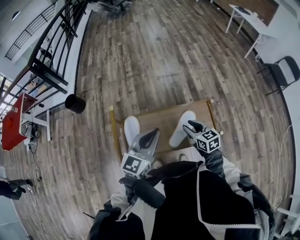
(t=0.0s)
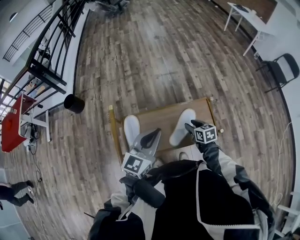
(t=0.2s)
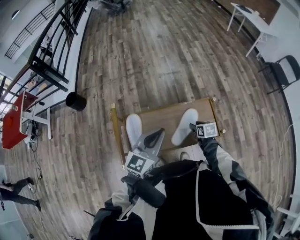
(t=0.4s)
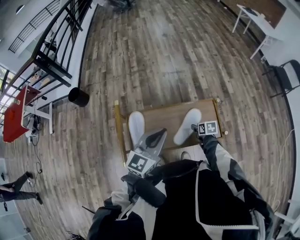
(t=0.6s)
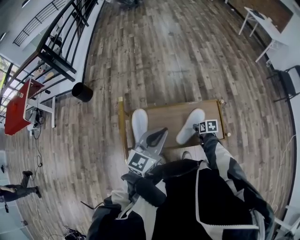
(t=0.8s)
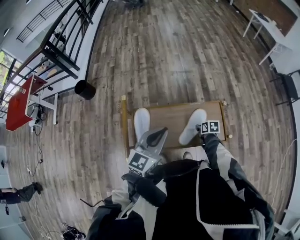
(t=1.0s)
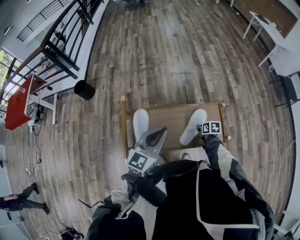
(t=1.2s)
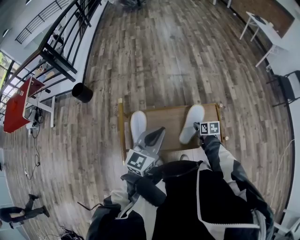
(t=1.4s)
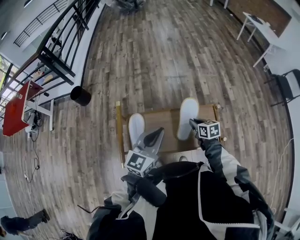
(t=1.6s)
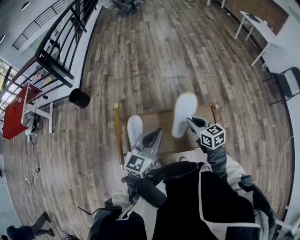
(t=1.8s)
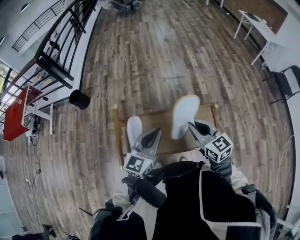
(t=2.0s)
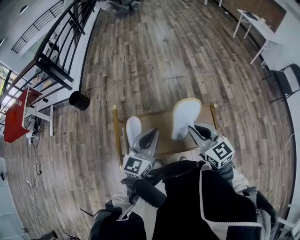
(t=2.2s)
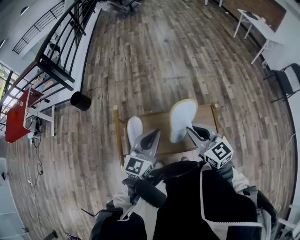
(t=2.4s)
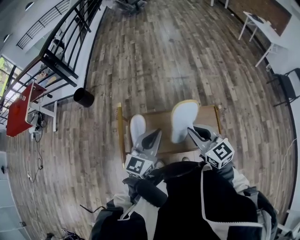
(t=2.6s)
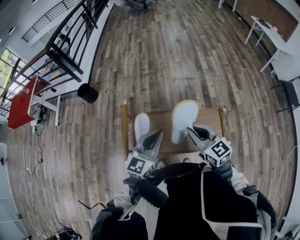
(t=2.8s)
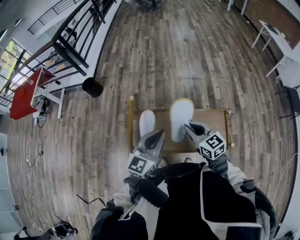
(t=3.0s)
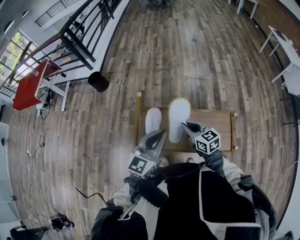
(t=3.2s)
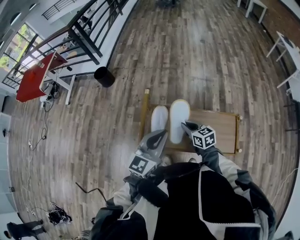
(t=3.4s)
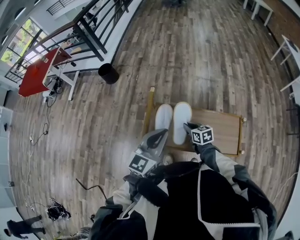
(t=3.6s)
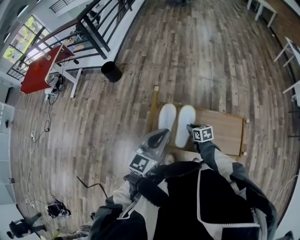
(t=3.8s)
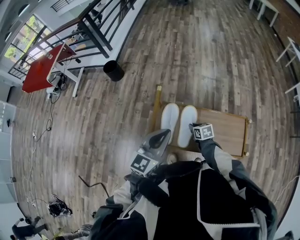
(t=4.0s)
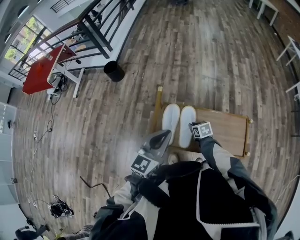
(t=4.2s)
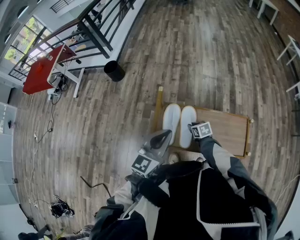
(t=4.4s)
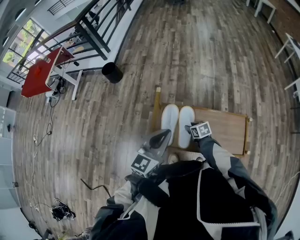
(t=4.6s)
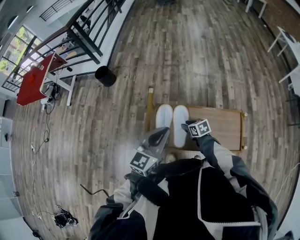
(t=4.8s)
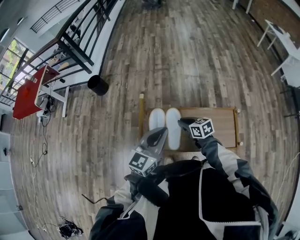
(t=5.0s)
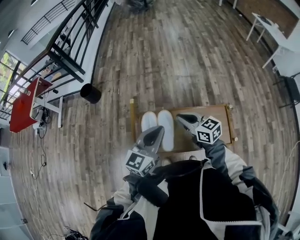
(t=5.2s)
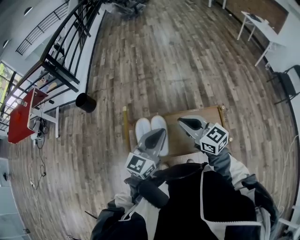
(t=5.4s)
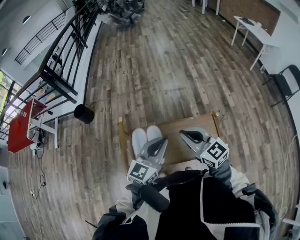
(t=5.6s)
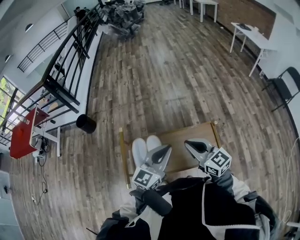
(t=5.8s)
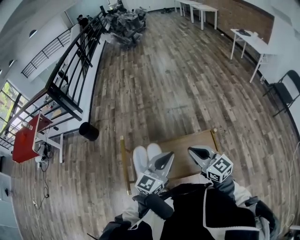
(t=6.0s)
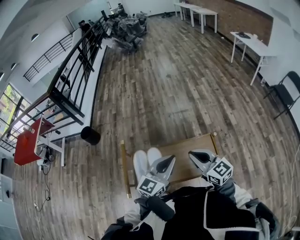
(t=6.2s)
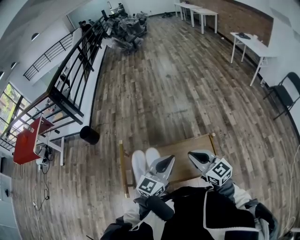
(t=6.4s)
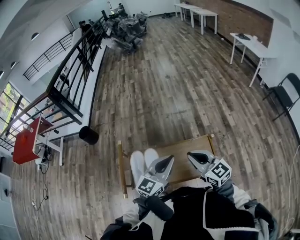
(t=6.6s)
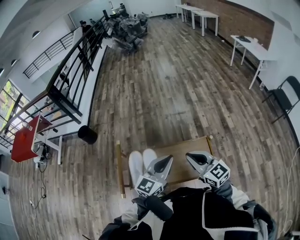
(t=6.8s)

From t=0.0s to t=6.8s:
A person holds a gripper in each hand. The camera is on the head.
From t=0.0s to t=1.4s: The right gripper shifts roughly 15 cm downward, swivels about 30 degrees, and closes its fingers.
From t=1.4s to t=2.8s: The right gripper is displaced upward by approximately 25 cm, and tilts its fingers about 40 degrees upward.
From t=2.8s to t=4.0s: The left gripper goes approximately 10 cm to the left; the right gripper moves downward, about 30 cm, and tips its fingers downward by roughly 30 degrees.
From t=4.0s to t=5.4s: The left gripper shifts roughly 10 cm to the right; the right gripper moves upward, some 30 cm, points its fingers roughly 40 degrees further upward, and opens, then closes again.
From t=5.4s to t=6.8s: The two grippers go about 10 cm to the right.

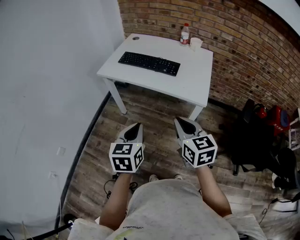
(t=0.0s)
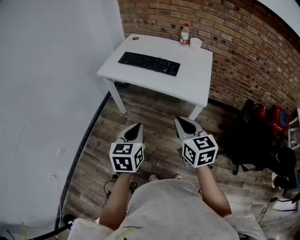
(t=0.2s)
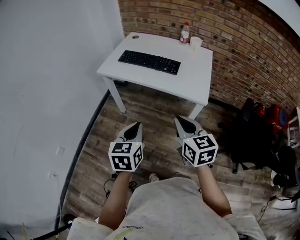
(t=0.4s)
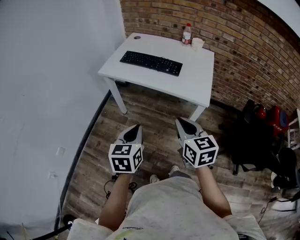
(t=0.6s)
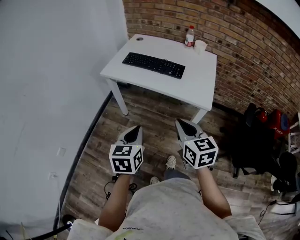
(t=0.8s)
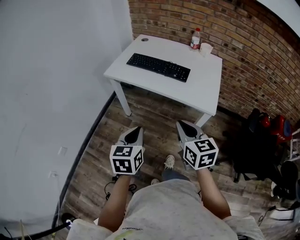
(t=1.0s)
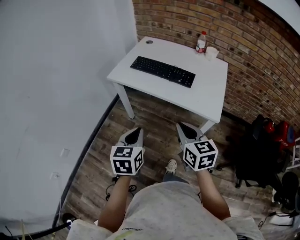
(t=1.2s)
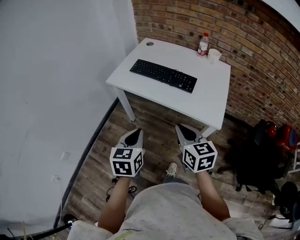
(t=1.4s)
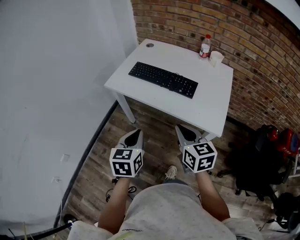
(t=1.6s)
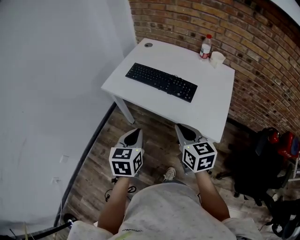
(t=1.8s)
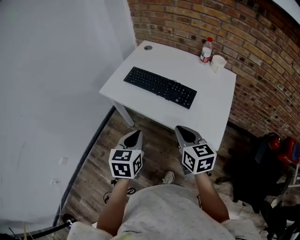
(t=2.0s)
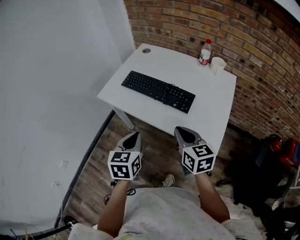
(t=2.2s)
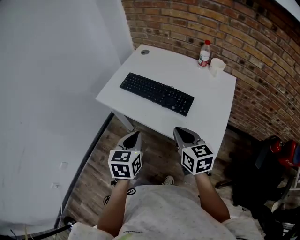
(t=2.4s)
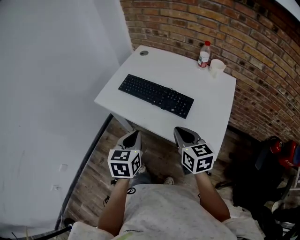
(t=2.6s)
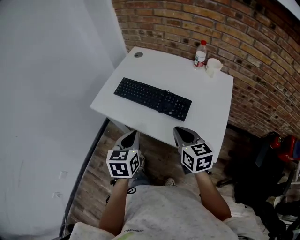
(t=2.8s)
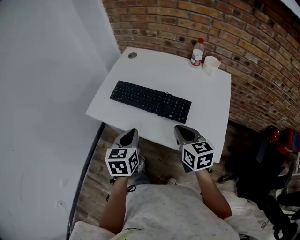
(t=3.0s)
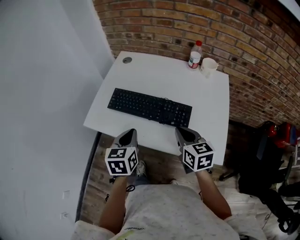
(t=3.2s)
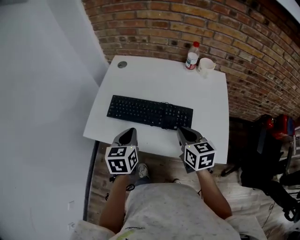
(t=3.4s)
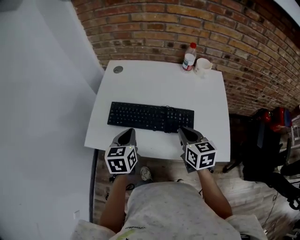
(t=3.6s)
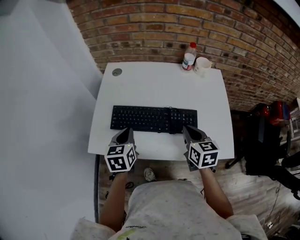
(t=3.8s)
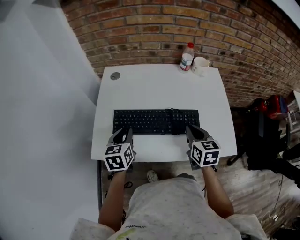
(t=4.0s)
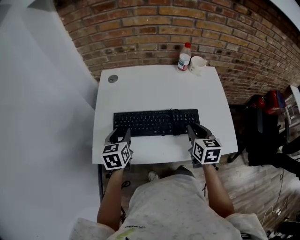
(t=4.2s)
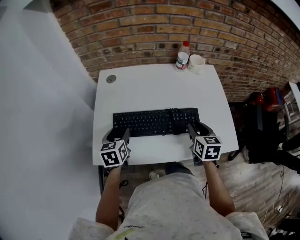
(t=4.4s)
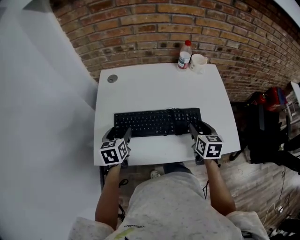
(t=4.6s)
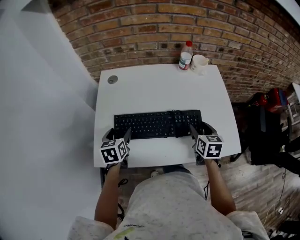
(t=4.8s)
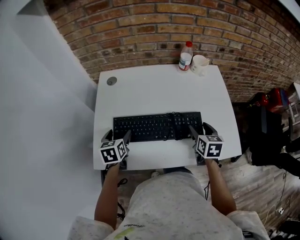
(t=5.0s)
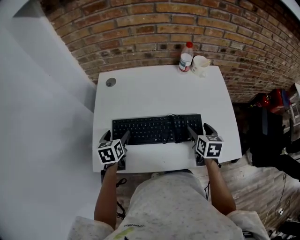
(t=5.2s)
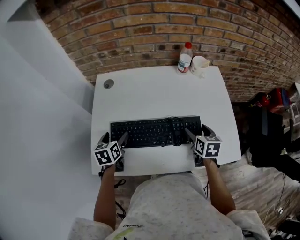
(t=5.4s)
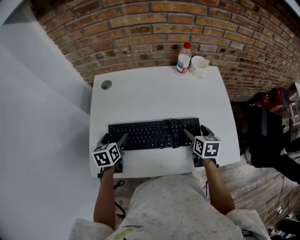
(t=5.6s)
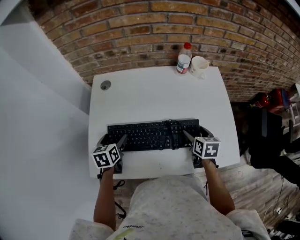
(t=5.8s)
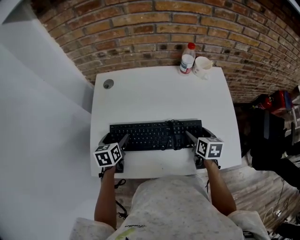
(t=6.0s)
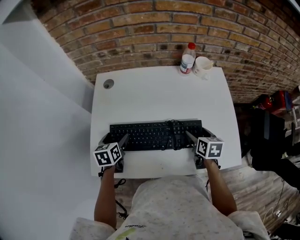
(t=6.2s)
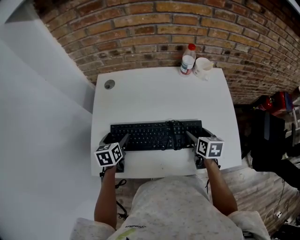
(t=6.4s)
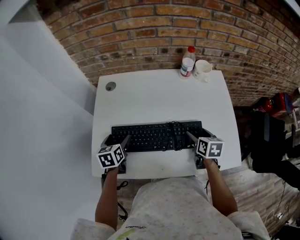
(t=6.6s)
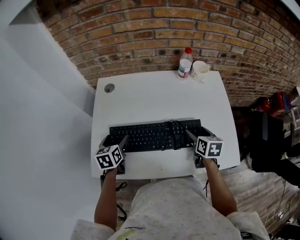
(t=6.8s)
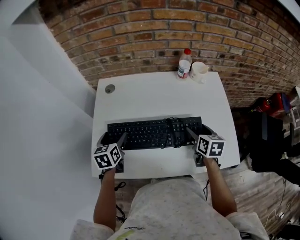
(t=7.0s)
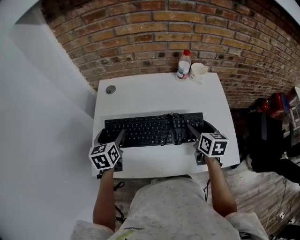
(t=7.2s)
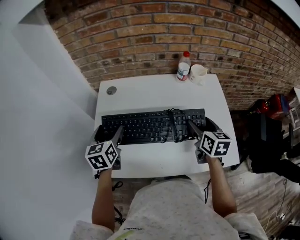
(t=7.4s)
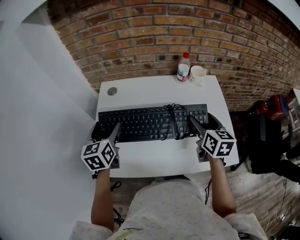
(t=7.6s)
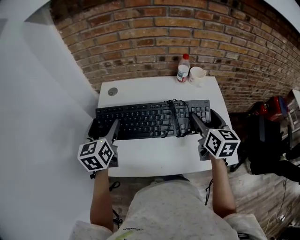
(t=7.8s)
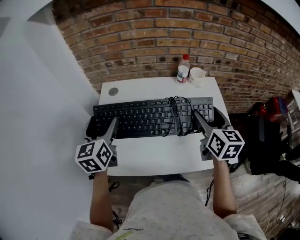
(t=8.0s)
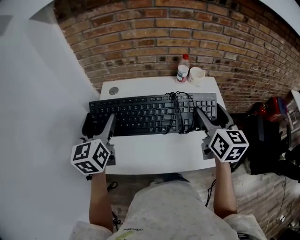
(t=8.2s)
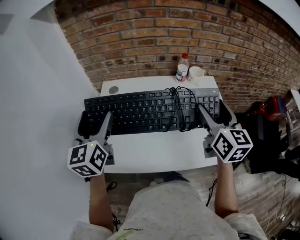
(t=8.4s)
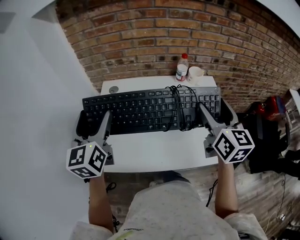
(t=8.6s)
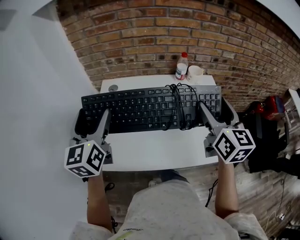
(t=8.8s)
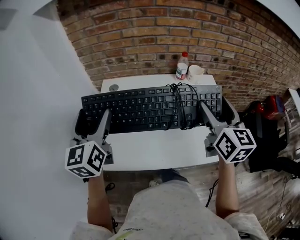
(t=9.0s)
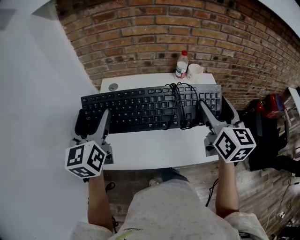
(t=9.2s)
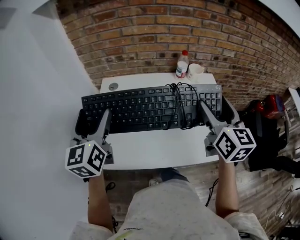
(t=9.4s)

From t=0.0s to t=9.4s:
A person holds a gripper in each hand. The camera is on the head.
From t=0.0s to t=1.6s: Both grippers travel together forward, approximately 15 cm.
From t=1.6s to t=3.2s: The grippers both shift forward by some 25 cm.
From t=3.2s to t=4.8s: The right gripper shifts some 10 cm forward and downward, changes its angle by roughly 40 degrees, and opens its fingers. The left gripper moves forward, to the left and downward, roughly 25 cm, and opens up.
From t=4.8s to t=6.2s: The right gripper is displaced downward and forward by about 5 cm, and opens its fingers, while the left gripper shifts by about 5 cm.
From t=6.2s to t=7.8s: The two grippers go approximately 20 cm upward. The left gripper turns by approximately 30 degrees, while the right gripper swivels roughly 30 degrees.
From t=7.8s to t=9.4s: Both grippers move upward and backward, roughly 10 cm.

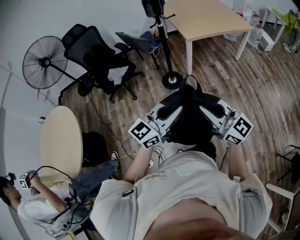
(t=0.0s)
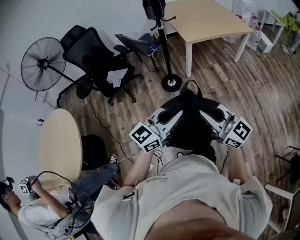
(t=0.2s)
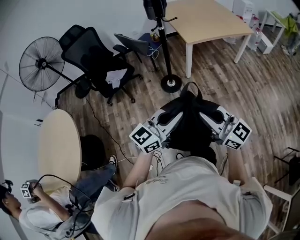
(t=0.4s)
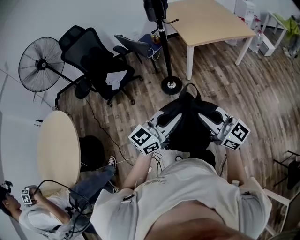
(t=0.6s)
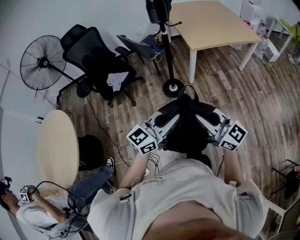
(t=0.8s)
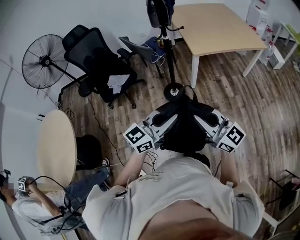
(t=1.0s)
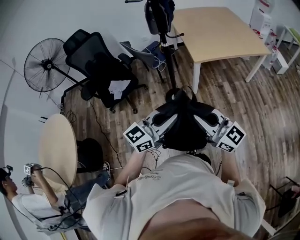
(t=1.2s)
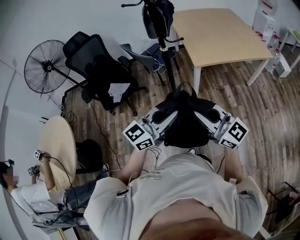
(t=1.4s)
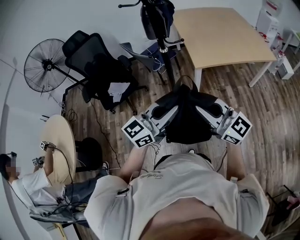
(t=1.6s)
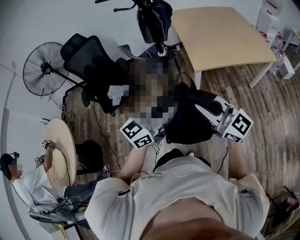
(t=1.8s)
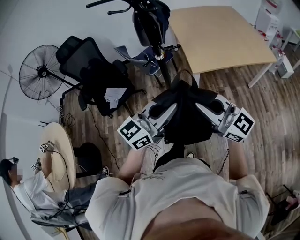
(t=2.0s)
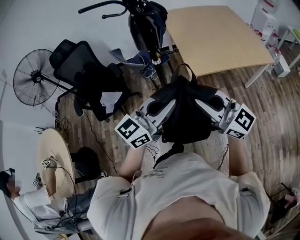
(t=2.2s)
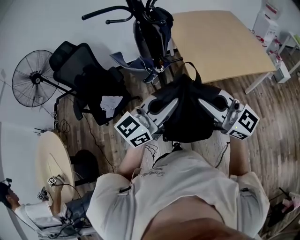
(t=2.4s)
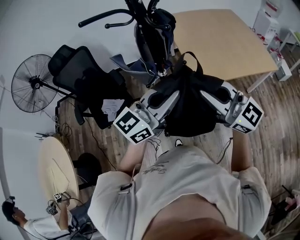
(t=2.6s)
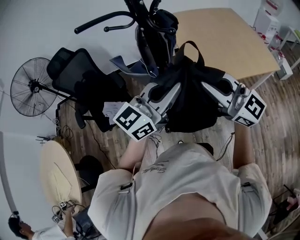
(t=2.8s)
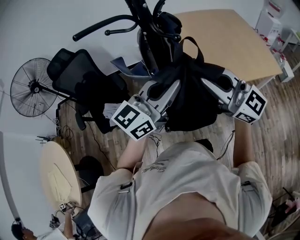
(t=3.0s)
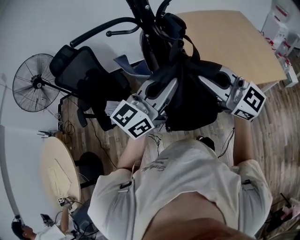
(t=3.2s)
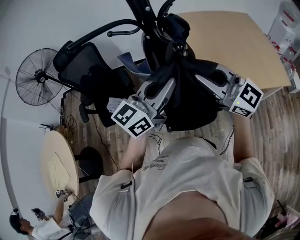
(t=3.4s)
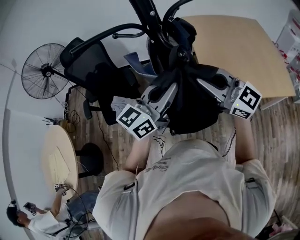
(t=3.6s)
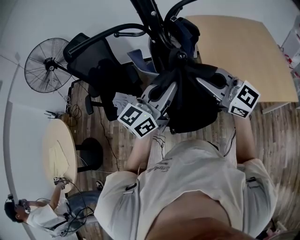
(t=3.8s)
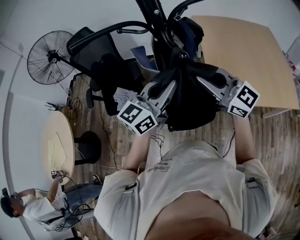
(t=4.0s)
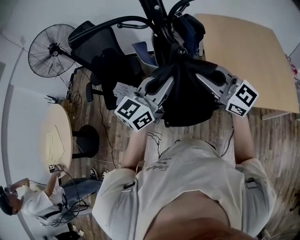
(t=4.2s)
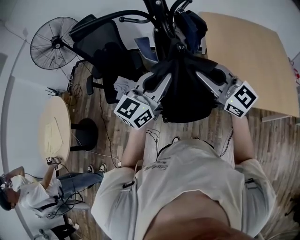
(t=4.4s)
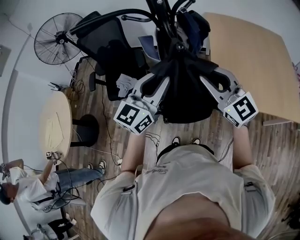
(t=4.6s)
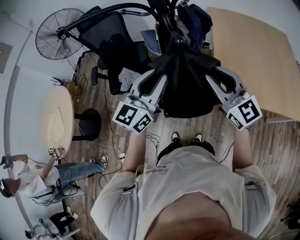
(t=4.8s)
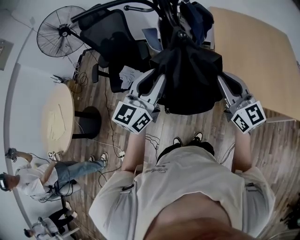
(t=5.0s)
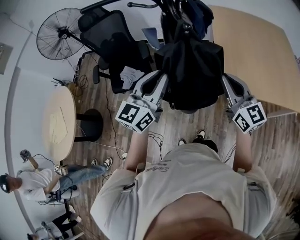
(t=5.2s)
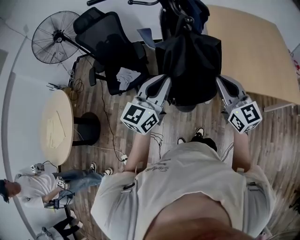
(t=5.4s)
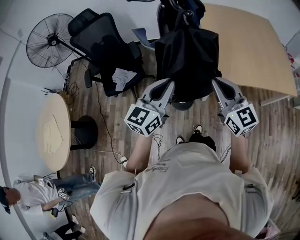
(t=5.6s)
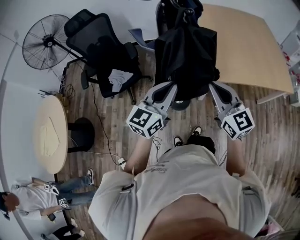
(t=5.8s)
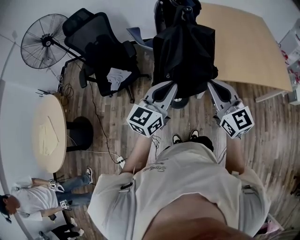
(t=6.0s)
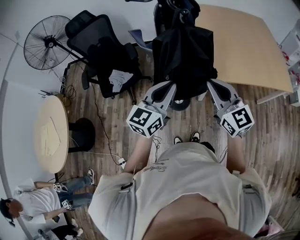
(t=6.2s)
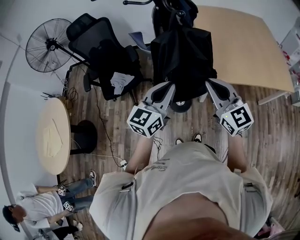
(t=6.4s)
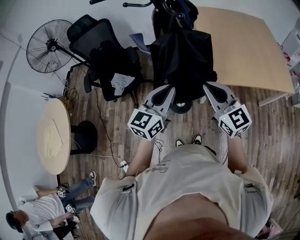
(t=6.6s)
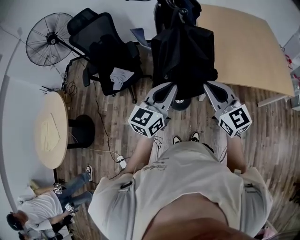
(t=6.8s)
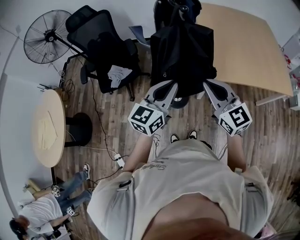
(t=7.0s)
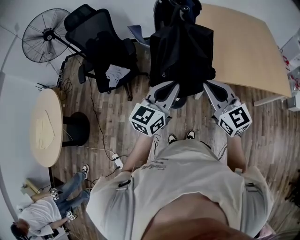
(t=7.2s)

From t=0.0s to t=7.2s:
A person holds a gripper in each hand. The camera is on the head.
From t=0.0s to t=1.4s: Both grippers travel together forward, some 30 cm.
From t=1.4s to t=2.8s: Both grippers travel together forward, approximately 30 cm.
From t=2.8s to t=4.4s: Both grippers move forward, some 10 cm. The left gripper swivels approximately 30 degrees.
From t=4.4s to t=5.8s: The two grippers go roughly 15 cm backward and downward. The right gripper swivels roughly 30 degrees.
From t=5.8s to t=7.2s: There are only small adjustments of the grippers.
